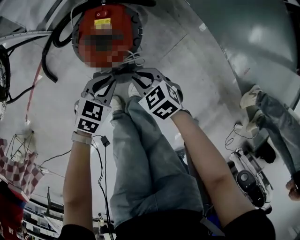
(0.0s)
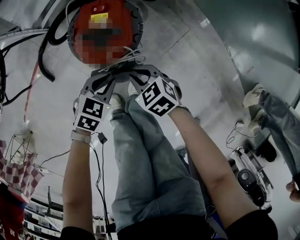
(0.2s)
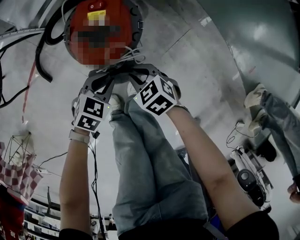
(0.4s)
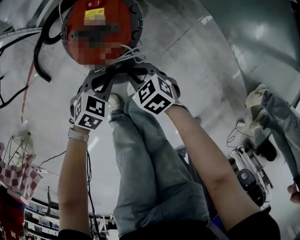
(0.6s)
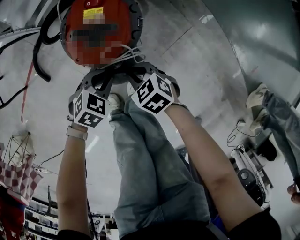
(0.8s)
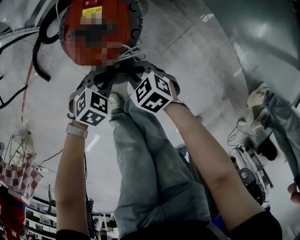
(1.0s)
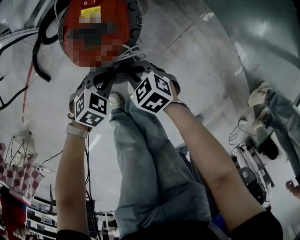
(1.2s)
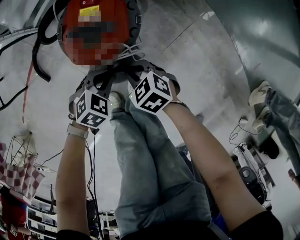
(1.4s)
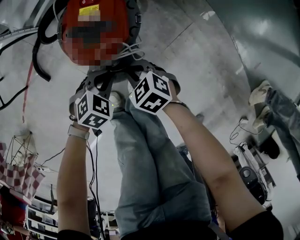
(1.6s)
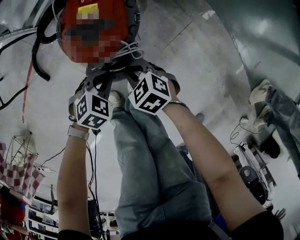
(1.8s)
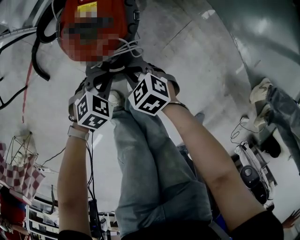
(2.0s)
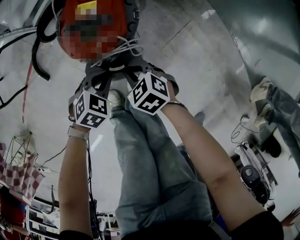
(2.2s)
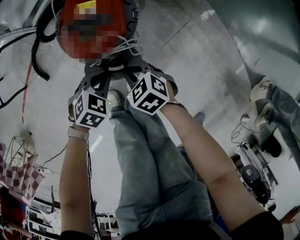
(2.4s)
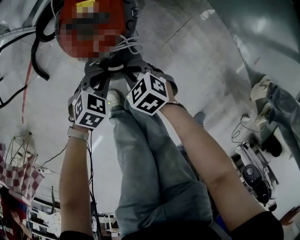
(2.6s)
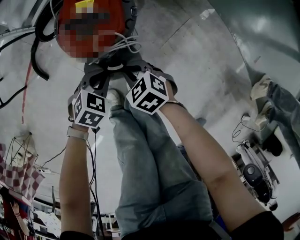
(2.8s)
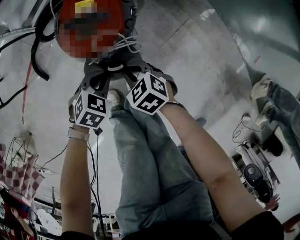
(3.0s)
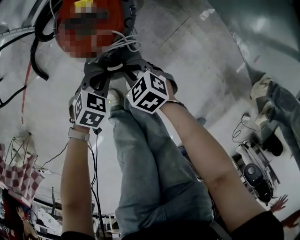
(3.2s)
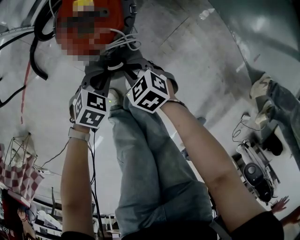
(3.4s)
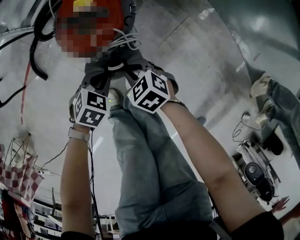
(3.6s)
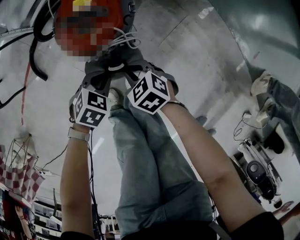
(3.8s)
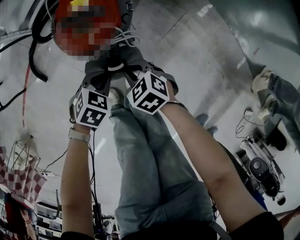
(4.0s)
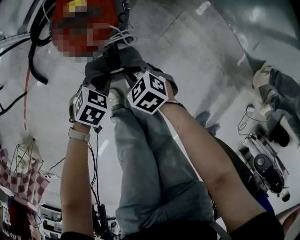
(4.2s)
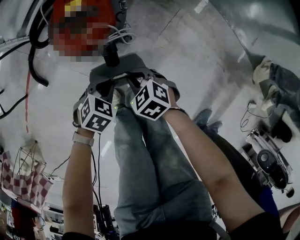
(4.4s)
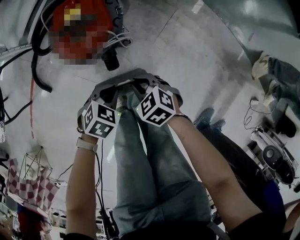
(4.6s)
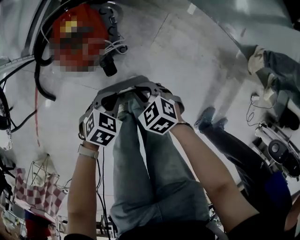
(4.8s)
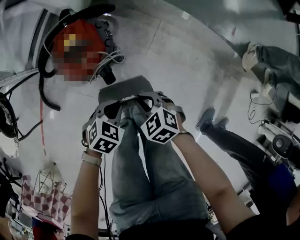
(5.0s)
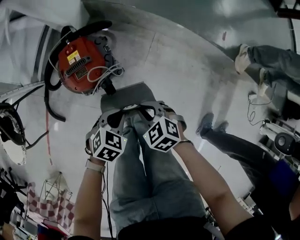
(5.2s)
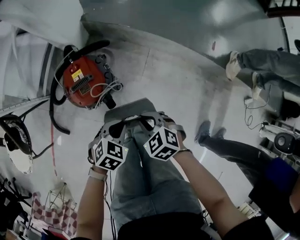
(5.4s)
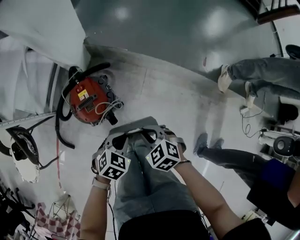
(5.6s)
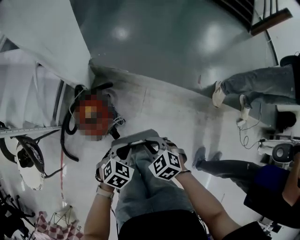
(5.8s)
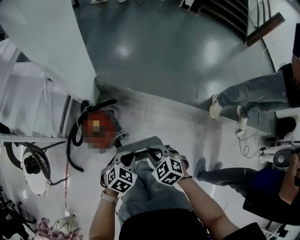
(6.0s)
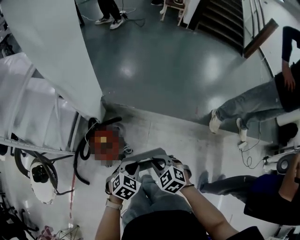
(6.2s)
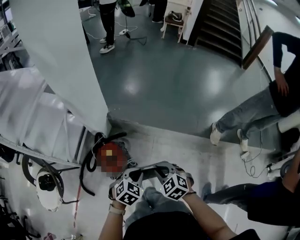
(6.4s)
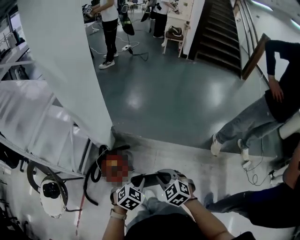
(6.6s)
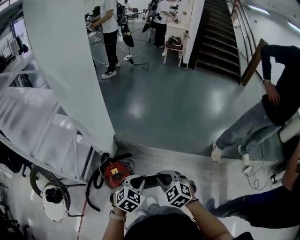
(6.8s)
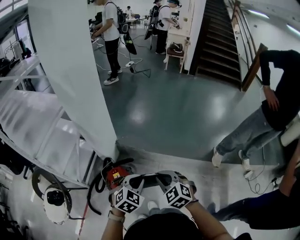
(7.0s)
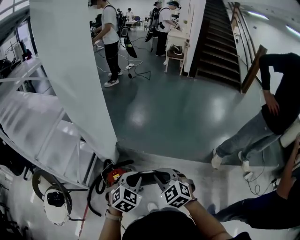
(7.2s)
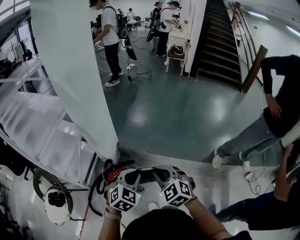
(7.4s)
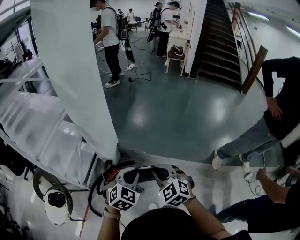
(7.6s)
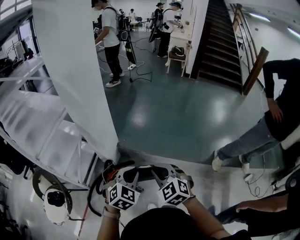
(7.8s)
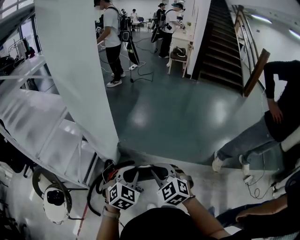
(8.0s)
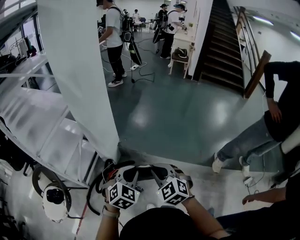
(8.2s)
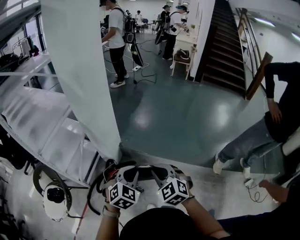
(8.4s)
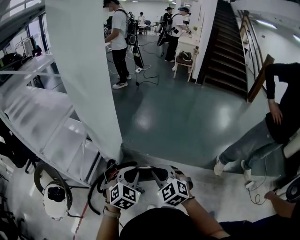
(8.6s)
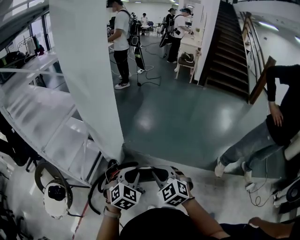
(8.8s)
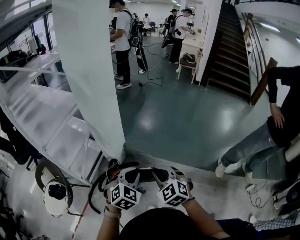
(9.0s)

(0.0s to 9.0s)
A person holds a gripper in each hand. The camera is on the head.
0.0s - 1.6s: The grippers both shift downward by about 10 cm. The left gripper changes its angle by roughly 20 degrees.
1.6s - 3.0s: The grippers move only a little.
3.0s - 4.4s: The right gripper moves roughly 5 cm. The left gripper ends up about 5 cm from where it was.
4.4s - 6.0s: Both grippers travel together upward, about 40 cm. The left gripper changes its angle by roughly 20 degrees. Meanwhile the right gripper turns by some 20 degrees.
6.0s - 7.6s: The two grippers go roughly 35 cm upward. The left gripper swivels approximately 30 degrees; the right gripper turns by some 30 degrees.
7.6s - 9.0s: The grippers stay close to where they were, moving slightly.

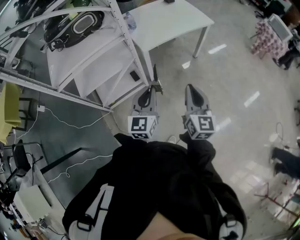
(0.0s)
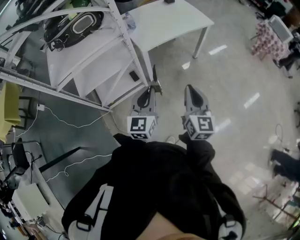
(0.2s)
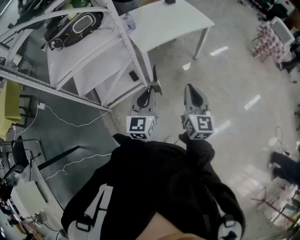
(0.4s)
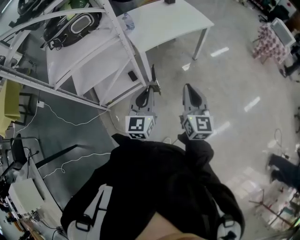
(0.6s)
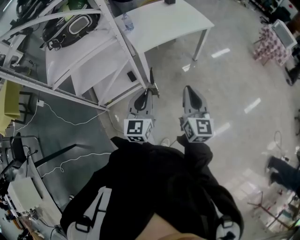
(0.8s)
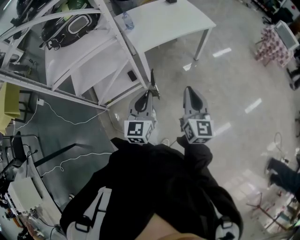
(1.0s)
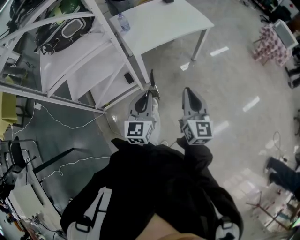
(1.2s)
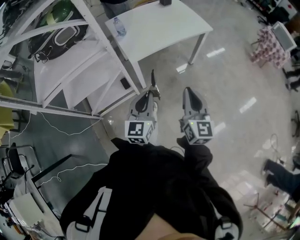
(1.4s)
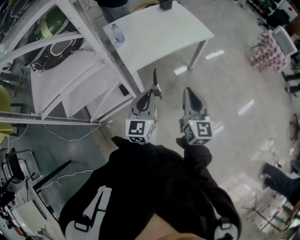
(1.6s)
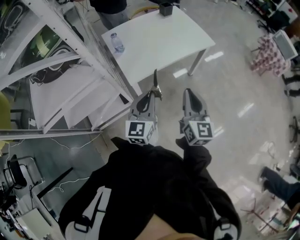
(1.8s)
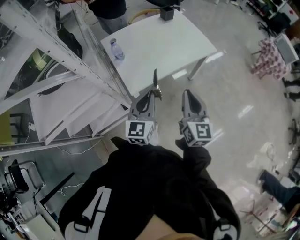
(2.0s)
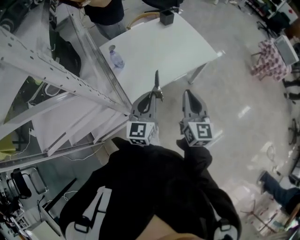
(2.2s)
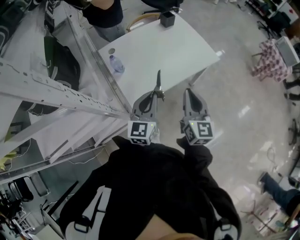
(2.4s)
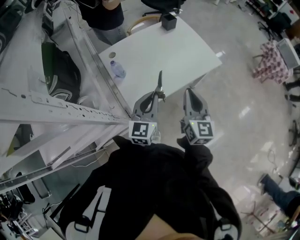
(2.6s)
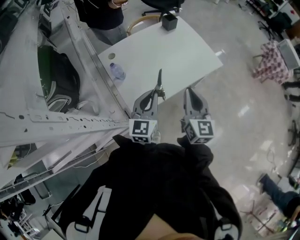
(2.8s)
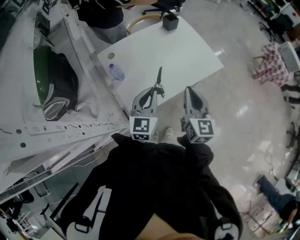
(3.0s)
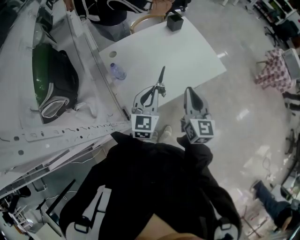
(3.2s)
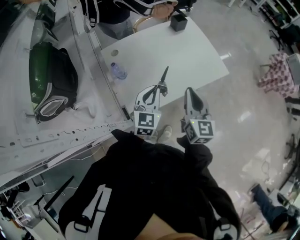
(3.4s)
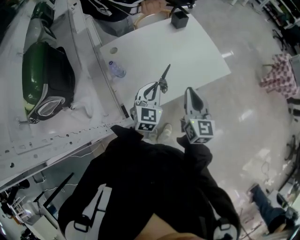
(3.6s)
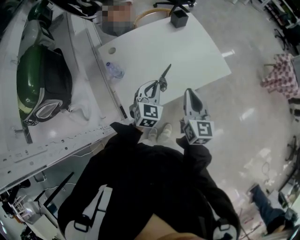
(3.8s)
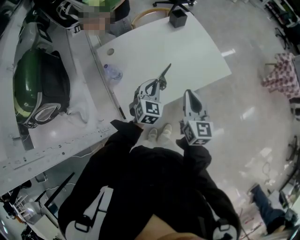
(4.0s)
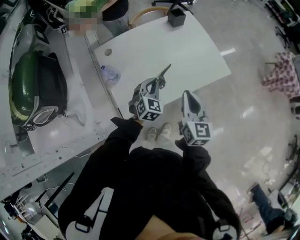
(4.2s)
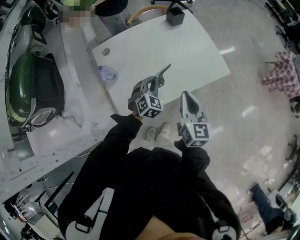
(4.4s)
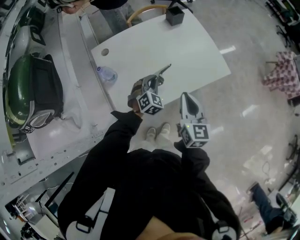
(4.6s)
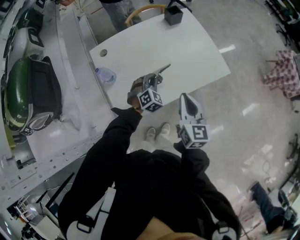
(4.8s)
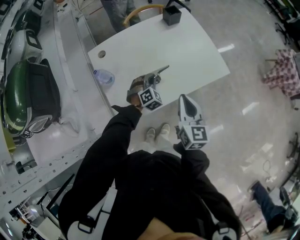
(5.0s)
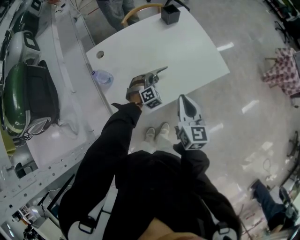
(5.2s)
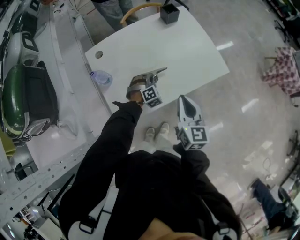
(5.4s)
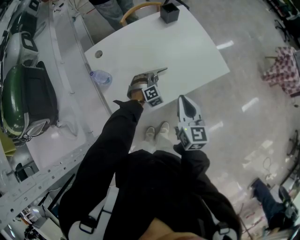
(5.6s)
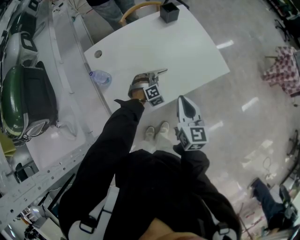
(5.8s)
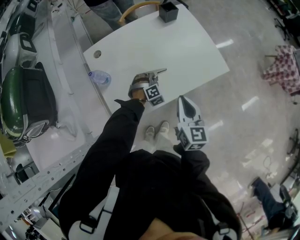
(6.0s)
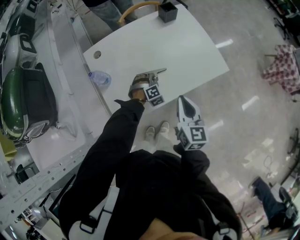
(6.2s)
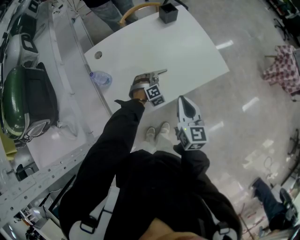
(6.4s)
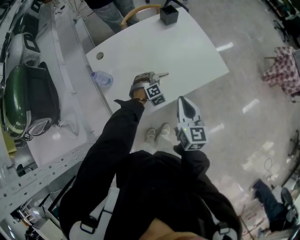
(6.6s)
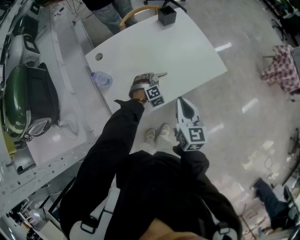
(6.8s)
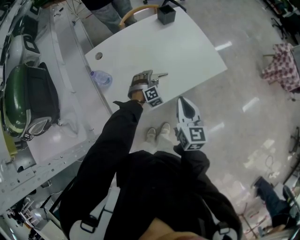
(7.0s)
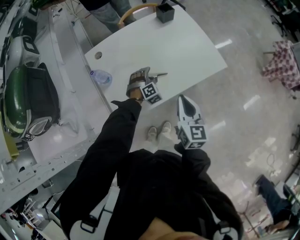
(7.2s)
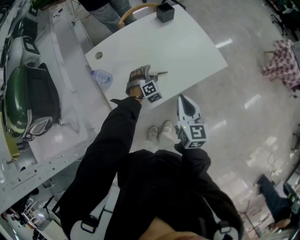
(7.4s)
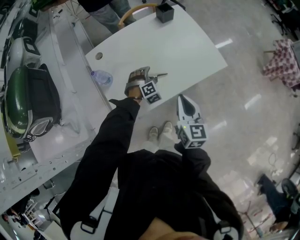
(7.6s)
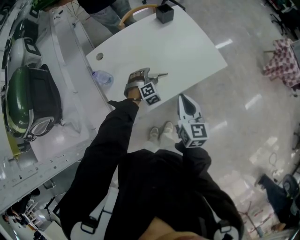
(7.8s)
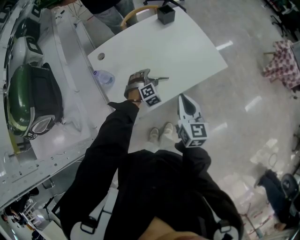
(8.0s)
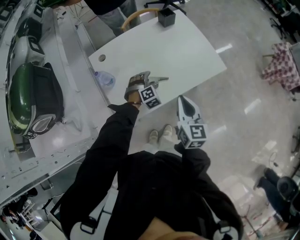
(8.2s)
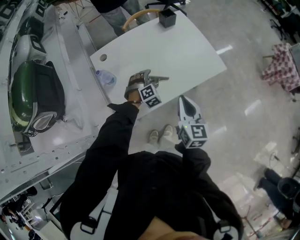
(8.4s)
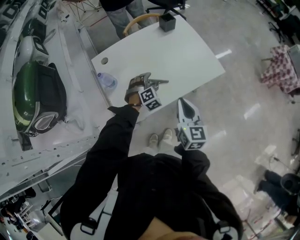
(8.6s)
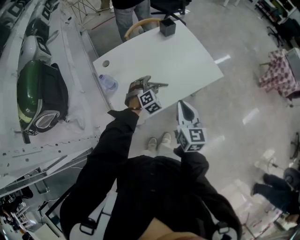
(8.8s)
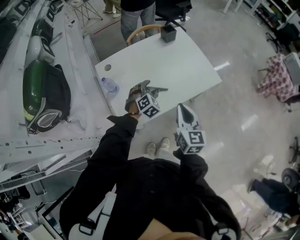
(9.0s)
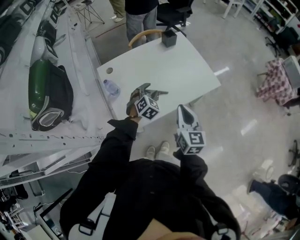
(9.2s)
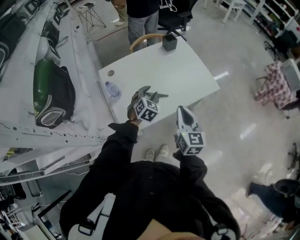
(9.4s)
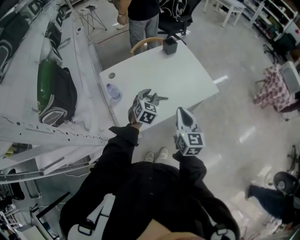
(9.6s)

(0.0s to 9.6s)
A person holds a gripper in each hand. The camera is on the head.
0.0s - 1.6s: The grippers both shift forward by some 20 cm.
1.6s - 3.2s: The two grippers go approximately 40 cm forward.
3.2s - 4.8s: The left gripper heads downward and forward, covering roughly 25 cm, and changes its angle by roughly 40 degrees; the right gripper travels downward and forward by roughly 10 cm.
4.8s - 6.4s: The left gripper shifts roughly 10 cm downward, and turns by roughly 20 degrees.
6.4s - 8.0s: The left gripper goes approximately 5 cm upward, and opens its fingers.
8.0s - 9.6s: The right gripper shifts some 5 cm upward; the left gripper goes some 15 cm upward, rotates some 40 degrees, and closes up.

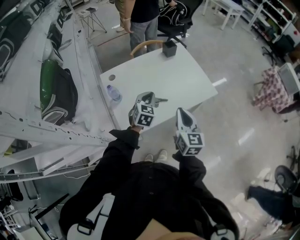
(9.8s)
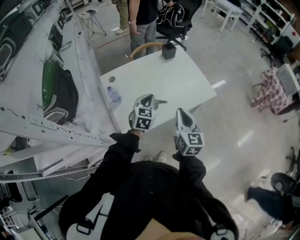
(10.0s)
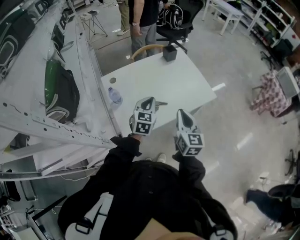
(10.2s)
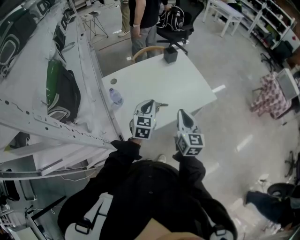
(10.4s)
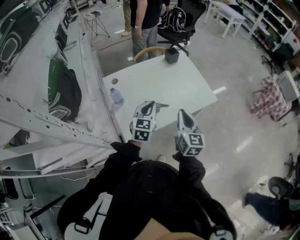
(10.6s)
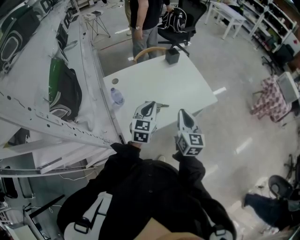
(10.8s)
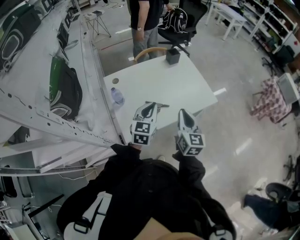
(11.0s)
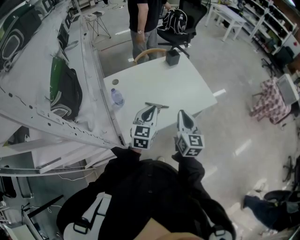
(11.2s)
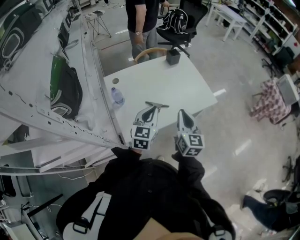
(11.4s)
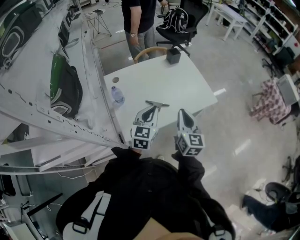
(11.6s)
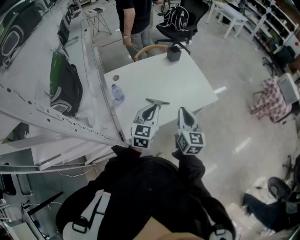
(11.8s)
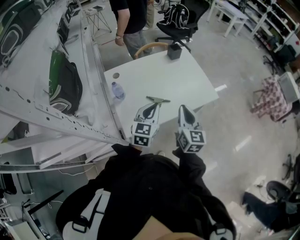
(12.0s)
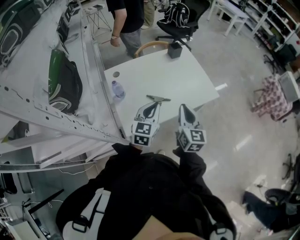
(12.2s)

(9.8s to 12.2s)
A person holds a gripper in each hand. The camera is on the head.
9.8s - 11.0s: The left gripper shifts some 10 cm upward and backward.
11.0s - 12.2s: The grippers move only a little.

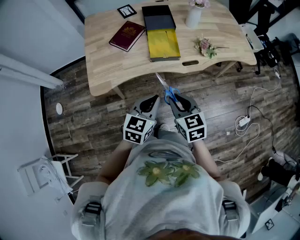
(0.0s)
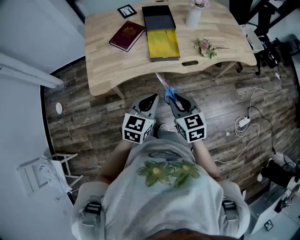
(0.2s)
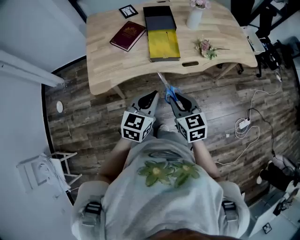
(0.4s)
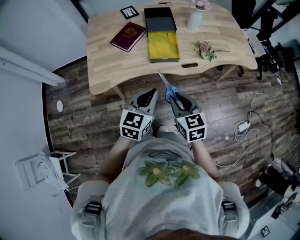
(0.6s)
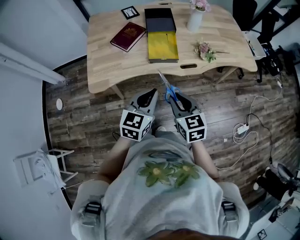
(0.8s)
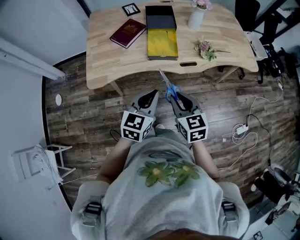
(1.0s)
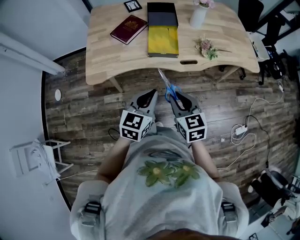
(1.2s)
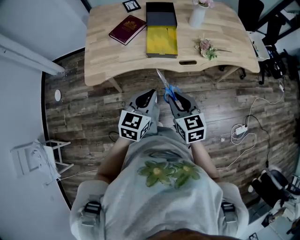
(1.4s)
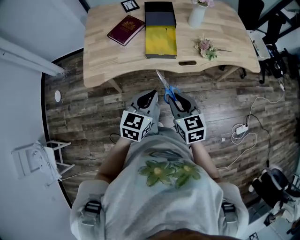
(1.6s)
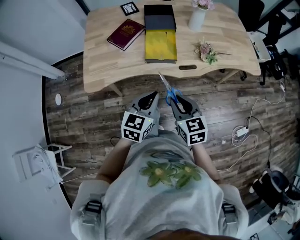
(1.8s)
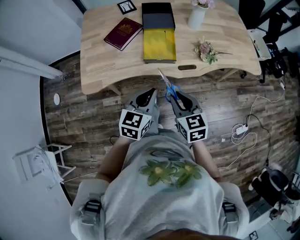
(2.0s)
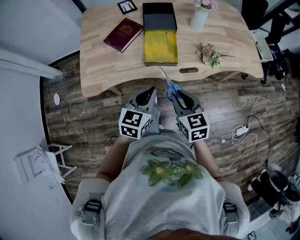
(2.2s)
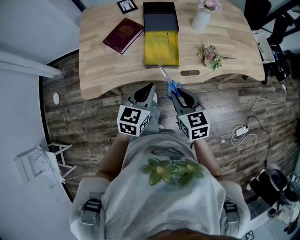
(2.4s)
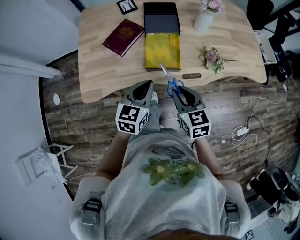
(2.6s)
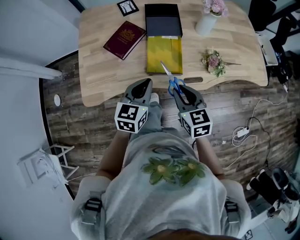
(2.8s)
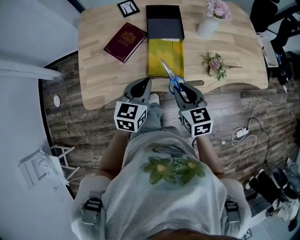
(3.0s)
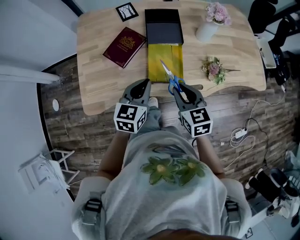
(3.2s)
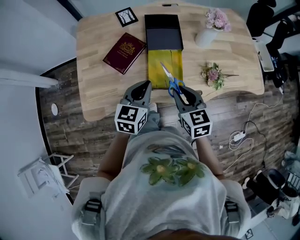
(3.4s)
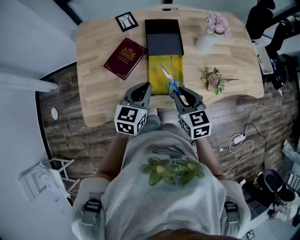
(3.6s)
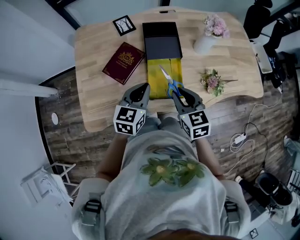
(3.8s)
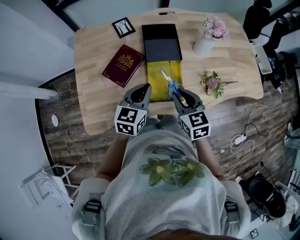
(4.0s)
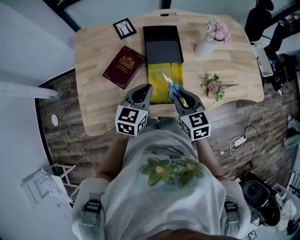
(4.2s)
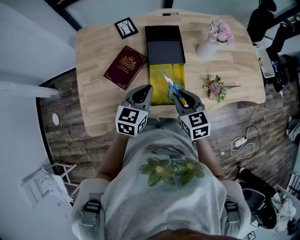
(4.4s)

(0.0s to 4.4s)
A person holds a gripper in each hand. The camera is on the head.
0.0s - 1.4s: The right gripper travels to the right by about 5 cm.
1.4s - 3.0s: Both grippers travel together forward, roughly 25 cm.
3.0s - 4.4s: The two grippers go roughly 10 cm forward.
